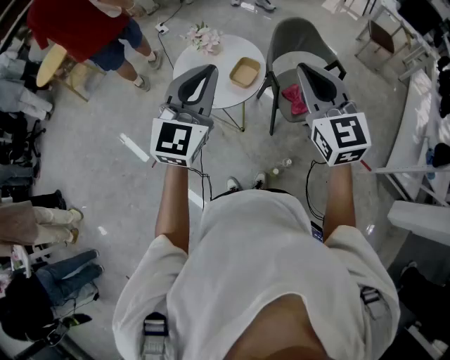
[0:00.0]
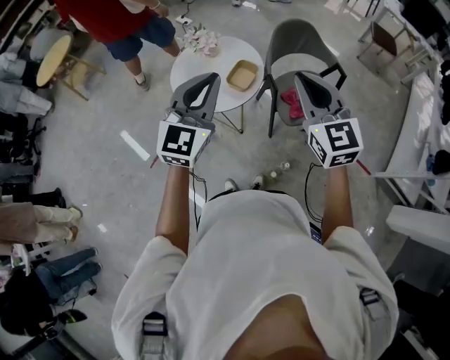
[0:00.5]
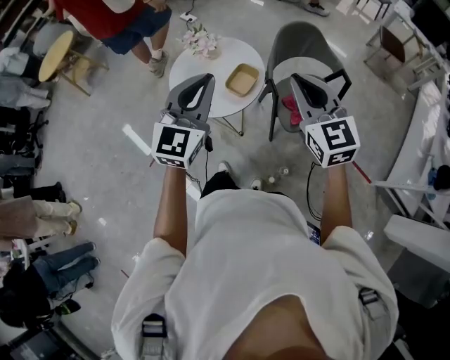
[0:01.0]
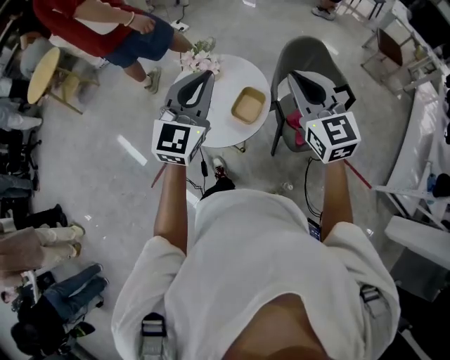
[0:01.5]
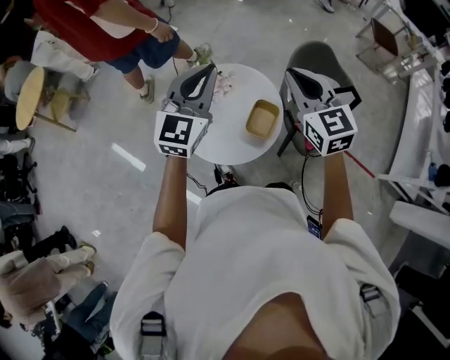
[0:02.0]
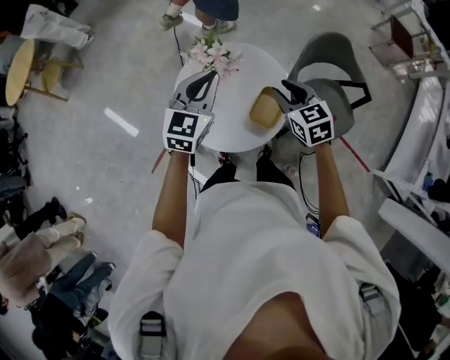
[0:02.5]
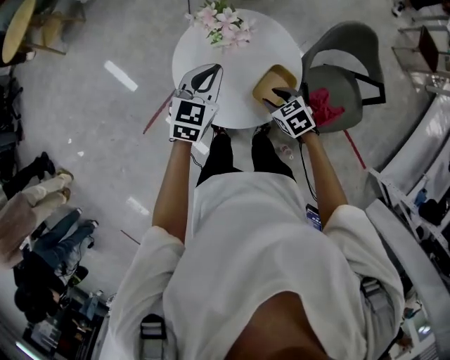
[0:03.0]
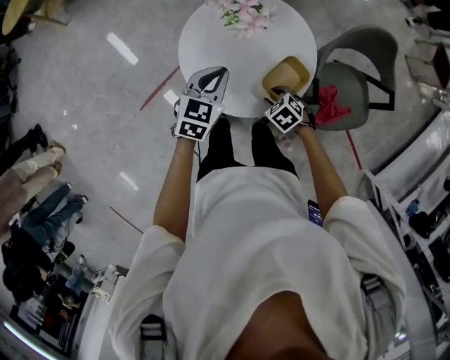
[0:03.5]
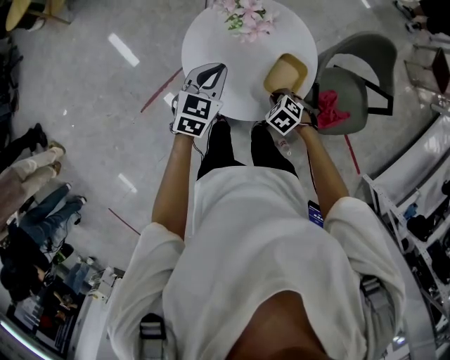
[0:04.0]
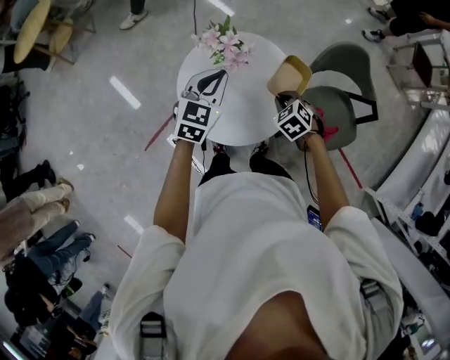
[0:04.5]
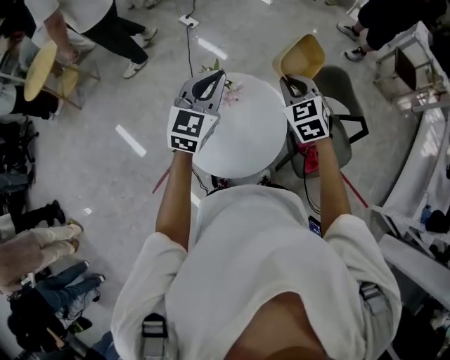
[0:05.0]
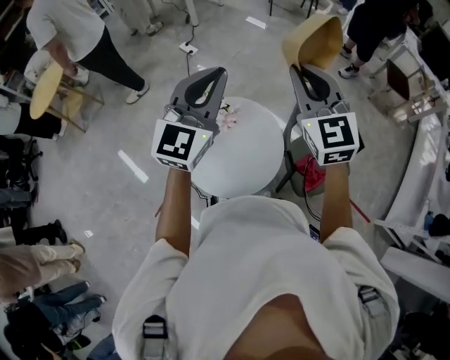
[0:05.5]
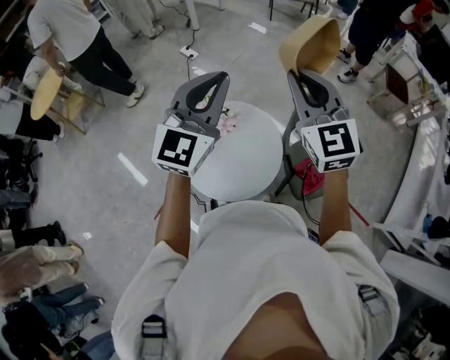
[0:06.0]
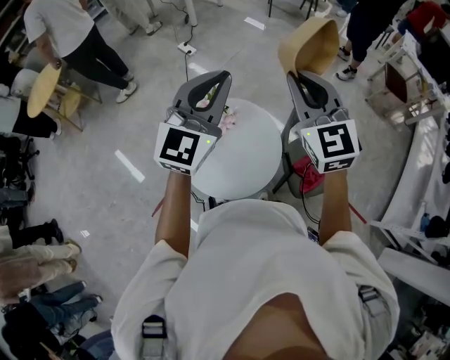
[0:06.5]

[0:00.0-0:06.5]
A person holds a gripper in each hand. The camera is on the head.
0.0 to 2.0 s: Both grippers move forward, approximately 35 cm.
2.0 to 4.5 s: The left gripper travels downward by approximately 20 cm, and swivels approximately 30 degrees. The right gripper moves downward, roughly 35 cm, tilts its fingers some 50 degrees downward, and opens, then closes once more.
4.5 to 6.5 s: The grippers both shift upward by about 35 cm. The right gripper points its fingers some 60 degrees further upward. The left gripper angles its fingers upward, by some 30 degrees.

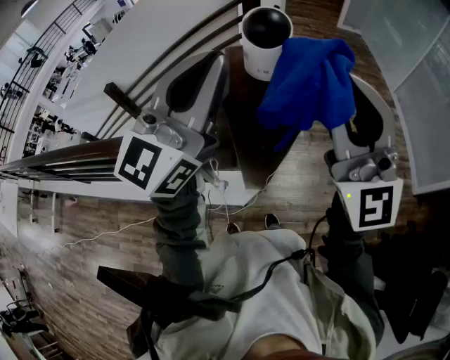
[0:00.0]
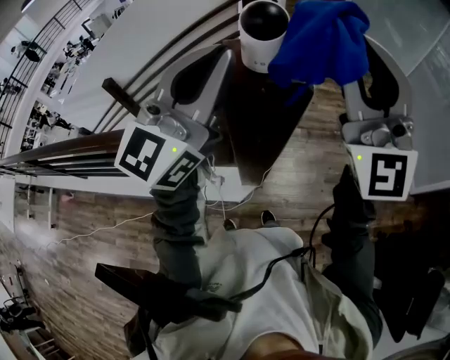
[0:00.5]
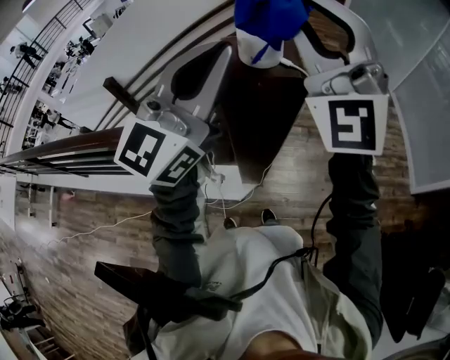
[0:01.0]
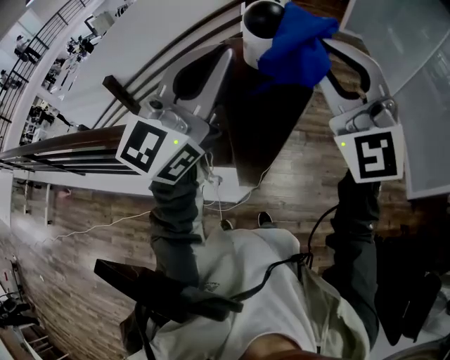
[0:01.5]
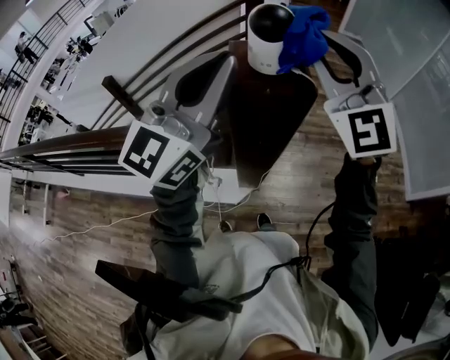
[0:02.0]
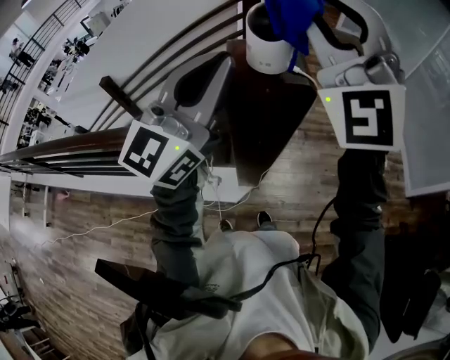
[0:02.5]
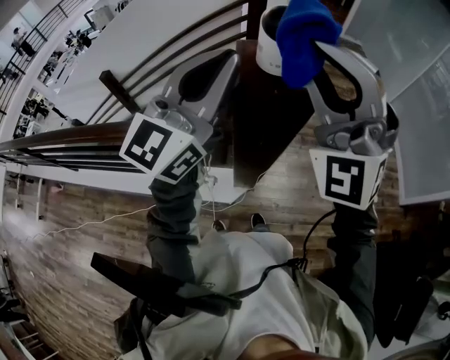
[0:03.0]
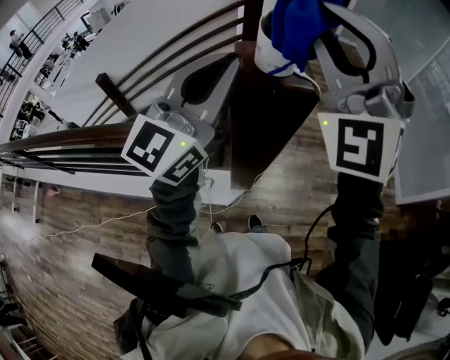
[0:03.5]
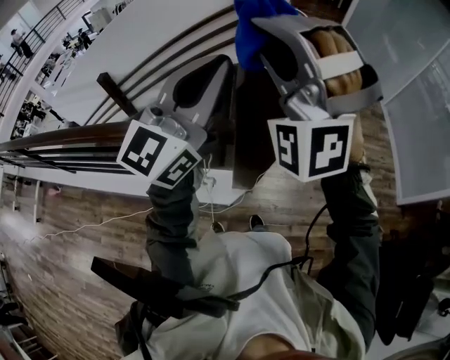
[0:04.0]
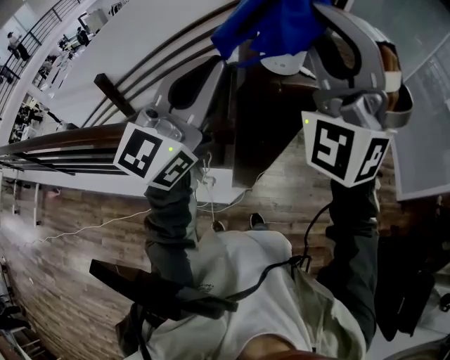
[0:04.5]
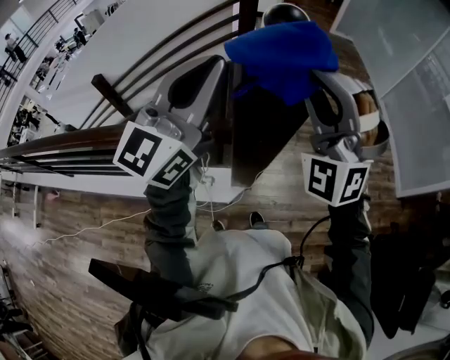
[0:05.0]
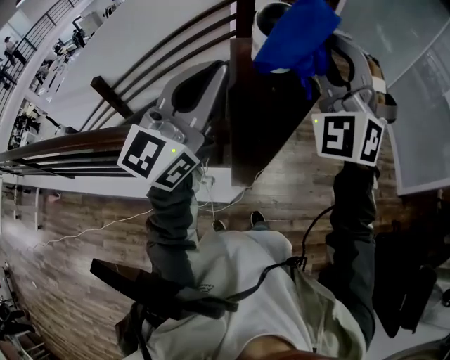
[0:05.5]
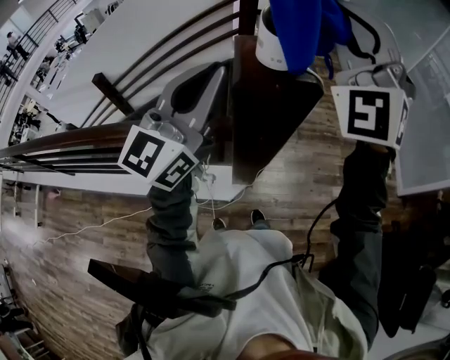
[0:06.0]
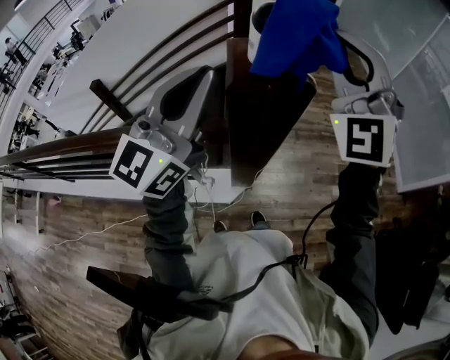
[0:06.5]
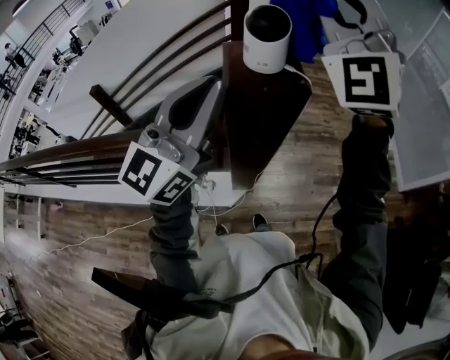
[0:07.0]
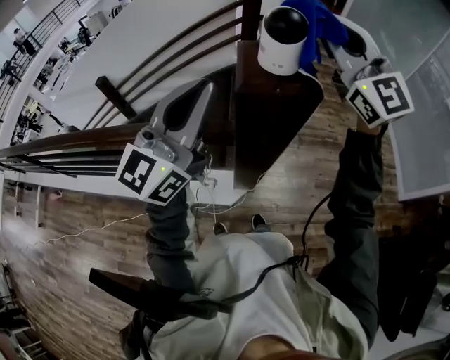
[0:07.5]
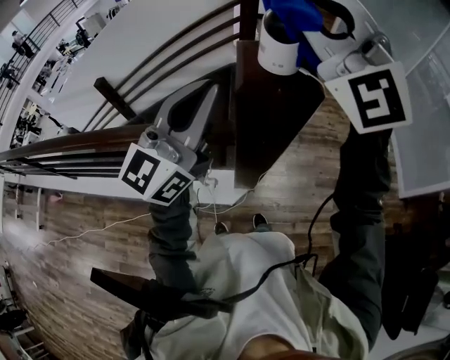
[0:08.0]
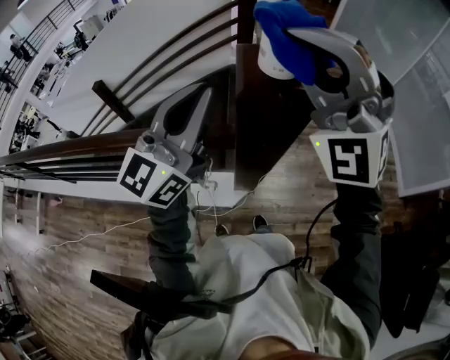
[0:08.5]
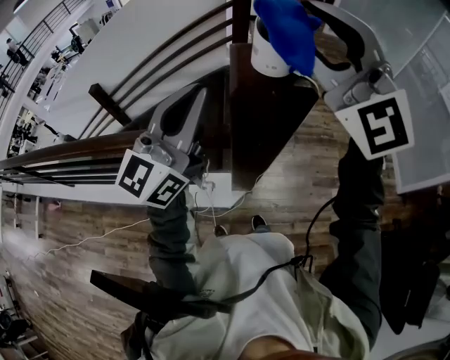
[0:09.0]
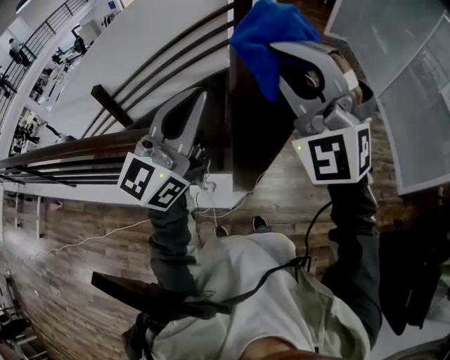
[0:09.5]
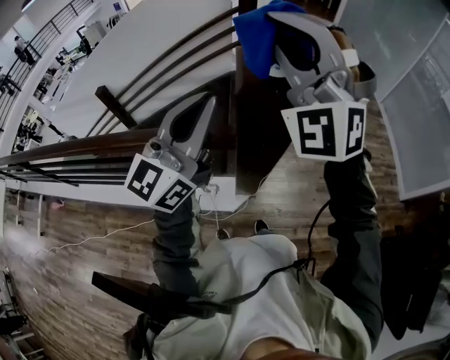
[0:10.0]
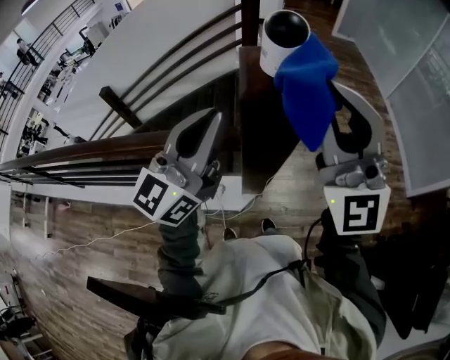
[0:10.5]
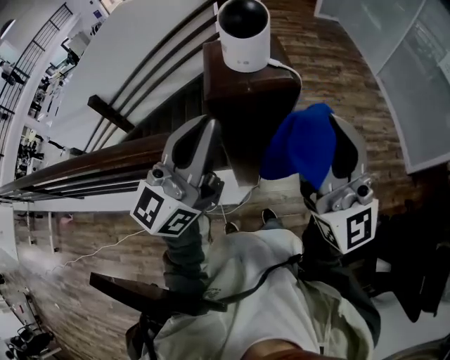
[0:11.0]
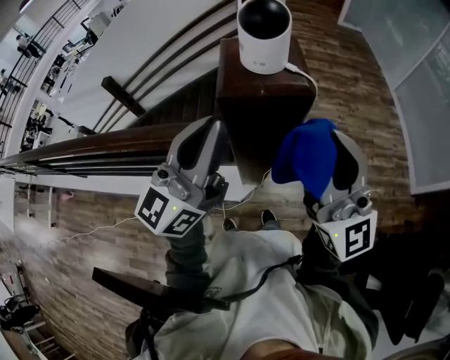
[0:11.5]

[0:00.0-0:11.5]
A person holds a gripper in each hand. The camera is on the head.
0.0 to 2.0 s: The right gripper goes about 10 cm forward, and changes its angle by roughly 20 degrees.
2.0 to 4.0 s: The right gripper heads to the left, covering some 10 cm, and rotates around the line of its fingers by some 50 degrees, counterclockwise from behind.
4.0 to 6.0 s: The right gripper goes some 10 cm to the right and forward, and changes its angle by some 30 degrees.
6.0 to 7.5 s: The right gripper twists roughly 40 degrees clockwise, seen from behind.
7.5 to 9.5 s: The right gripper travels to the left and backward by some 10 cm, twists about 40 degrees counterclockwise, seen from behind, and opens, then closes once more.
9.5 to 11.5 s: The left gripper shifts by approximately 5 cm, while the right gripper heads to the right and backward, covering roughly 15 cm, and rotates around the line of its fingers by approximately 60 degrees, clockwise from behind.

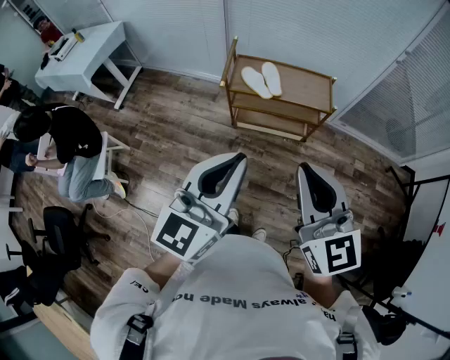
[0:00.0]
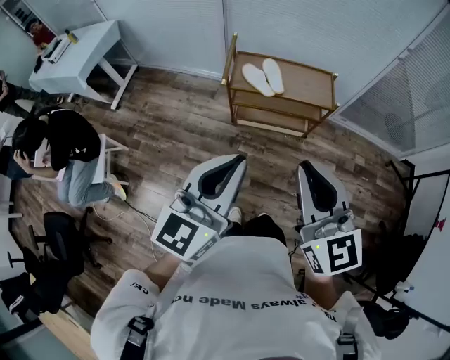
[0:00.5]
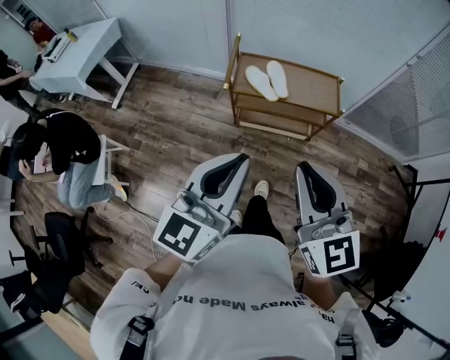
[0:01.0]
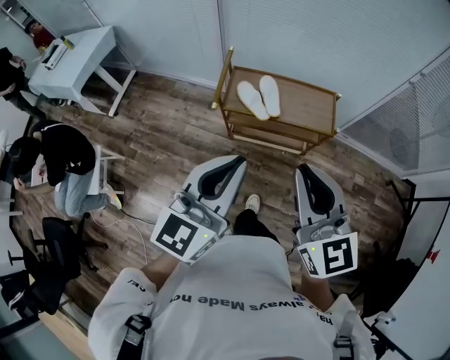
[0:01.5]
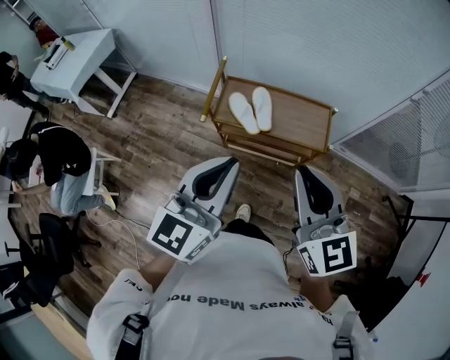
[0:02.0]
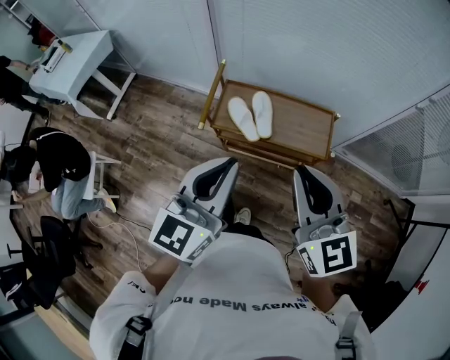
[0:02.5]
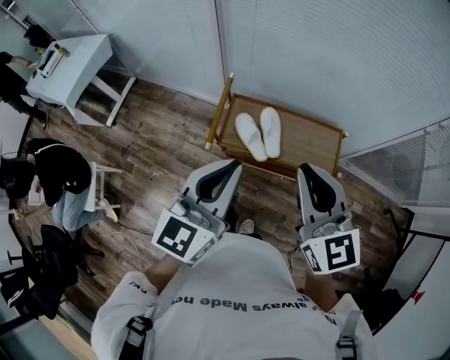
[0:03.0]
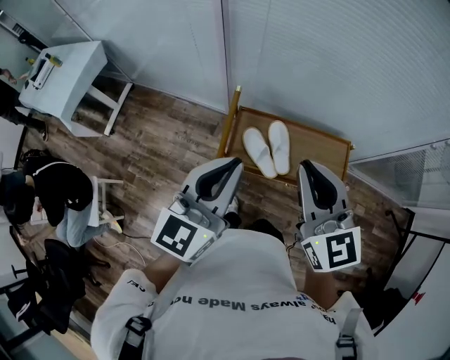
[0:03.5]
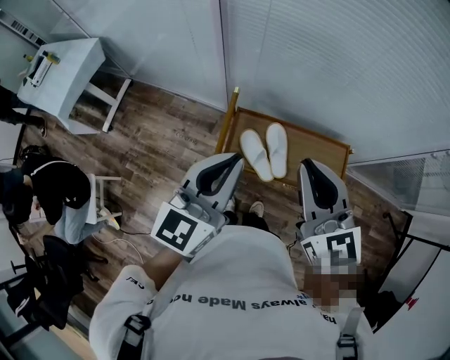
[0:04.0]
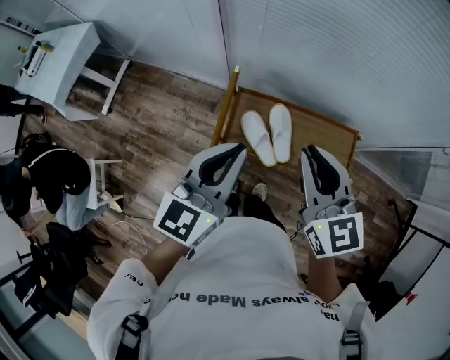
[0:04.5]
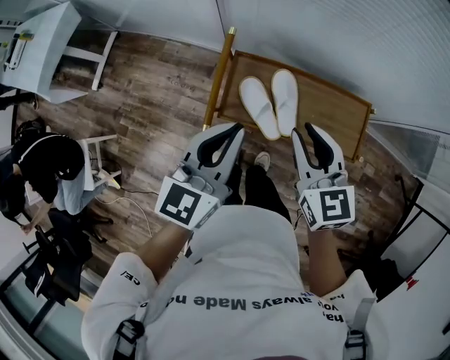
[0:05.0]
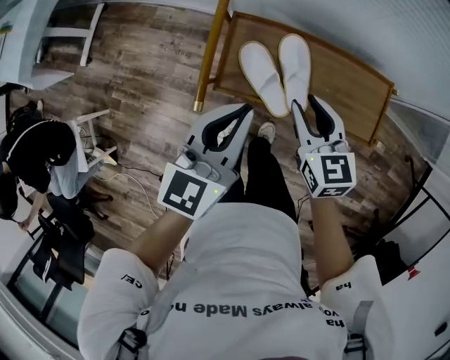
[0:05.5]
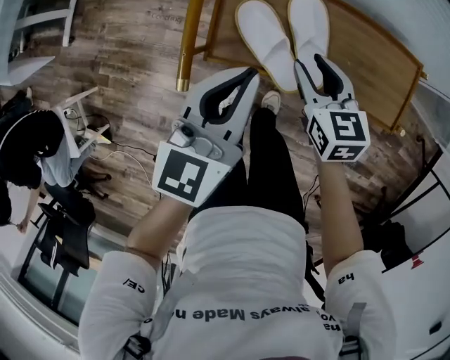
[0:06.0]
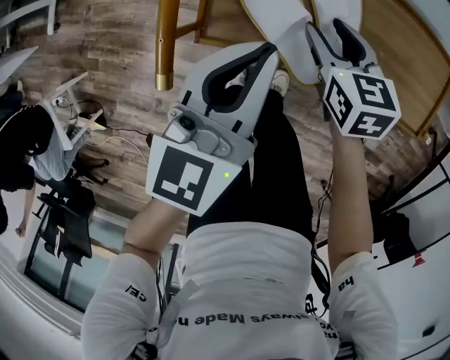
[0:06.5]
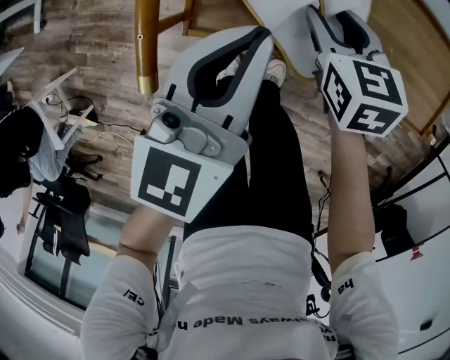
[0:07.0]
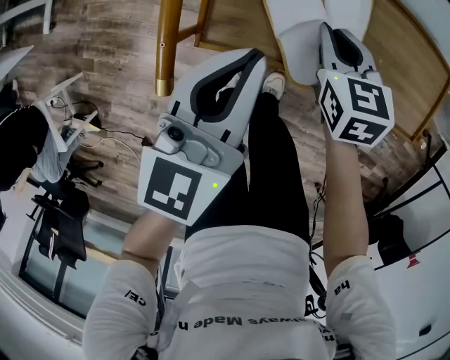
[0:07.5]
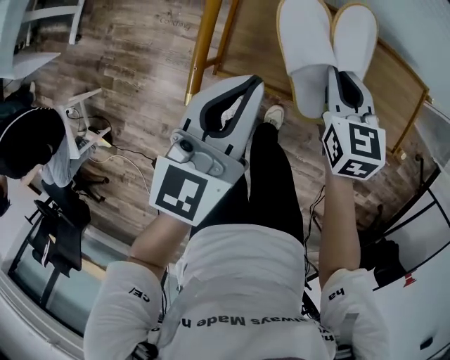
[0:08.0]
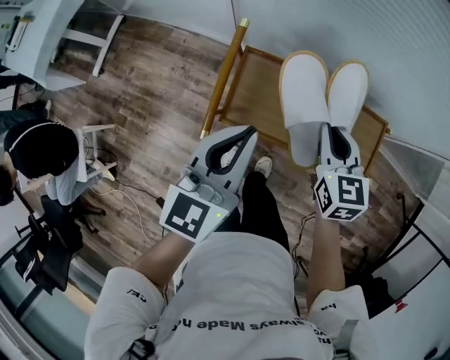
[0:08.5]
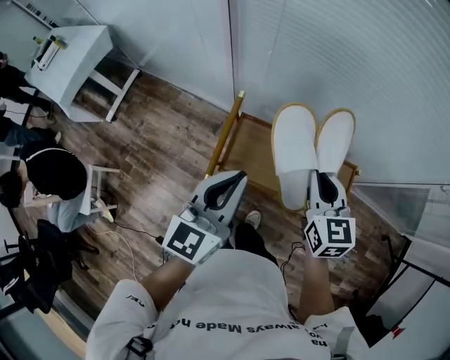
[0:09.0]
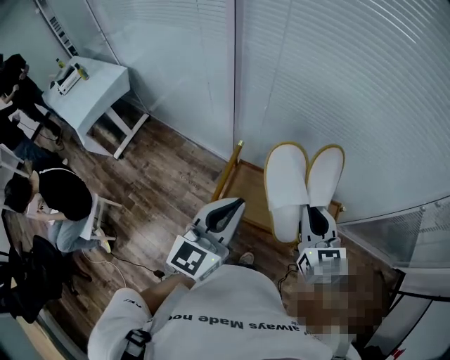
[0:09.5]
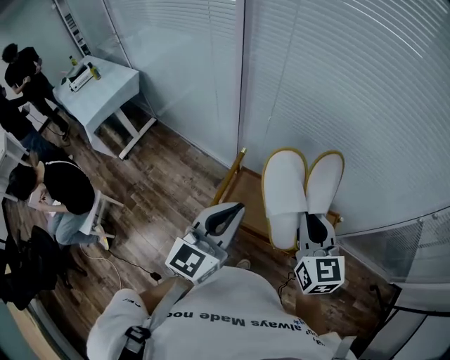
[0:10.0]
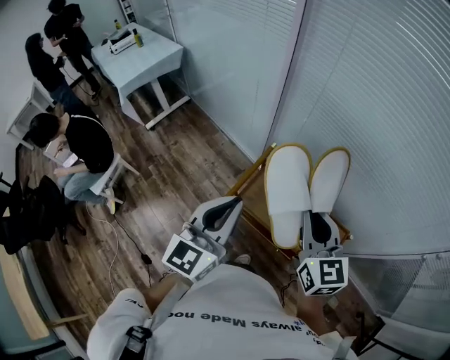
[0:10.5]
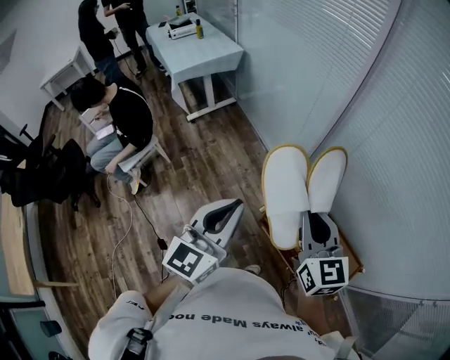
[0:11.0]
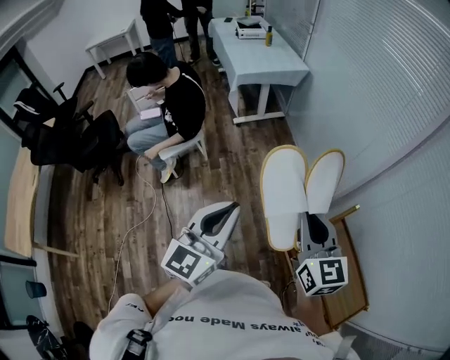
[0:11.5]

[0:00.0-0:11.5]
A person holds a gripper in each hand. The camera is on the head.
0.0 to 2.0 s: The grippers both shift forward by about 25 cm.
2.0 to 4.0 s: Both grippers move forward, some 30 cm.
4.0 to 6.0 s: The two grippers go approximately 40 cm downward. The right gripper angles its fingers downward, by roughly 30 degrees, and opens.
6.0 to 7.5 s: Both grippers move downward, about 10 cm. The right gripper closes up.
7.5 to 9.5 s: Both grippers travel together upward, approximately 50 cm. The right gripper changes its angle by approximately 30 degrees. Meanwhile the left gripper turns by roughly 20 degrees.
9.5 to 11.5 s: Both grippers are carried some 40 cm. The left gripper swivels some 50 degrees. The right gripper swivels some 50 degrees.
